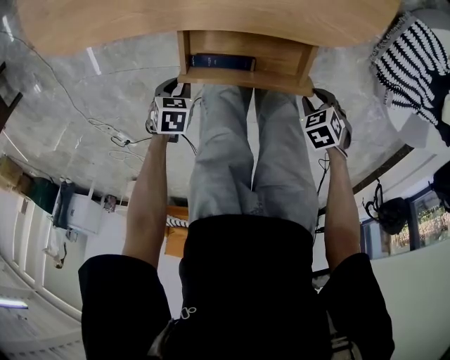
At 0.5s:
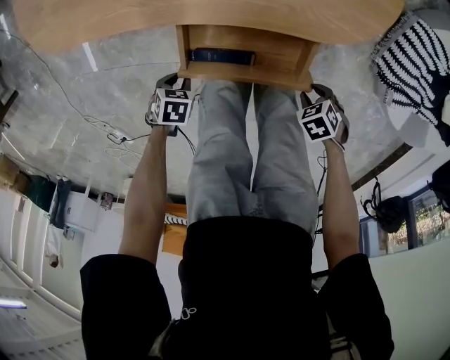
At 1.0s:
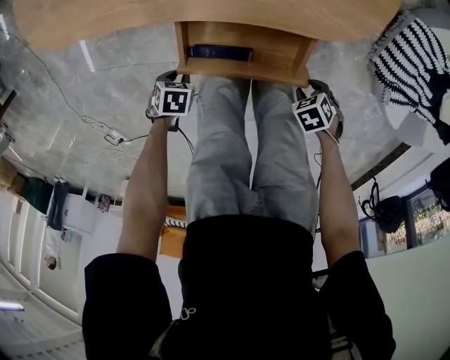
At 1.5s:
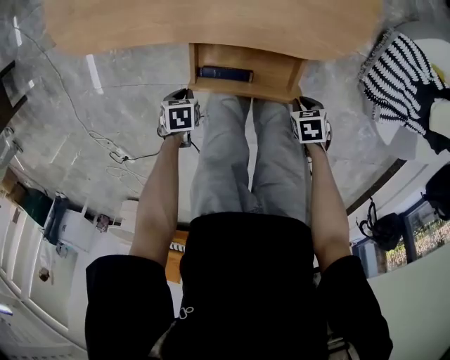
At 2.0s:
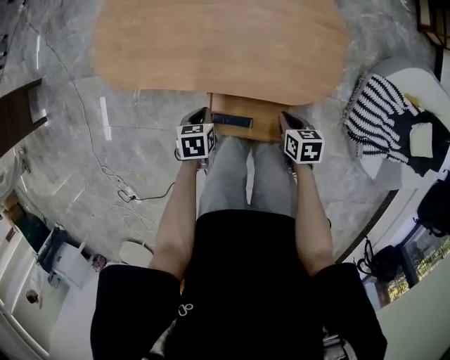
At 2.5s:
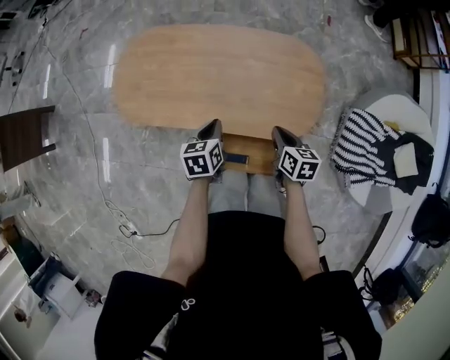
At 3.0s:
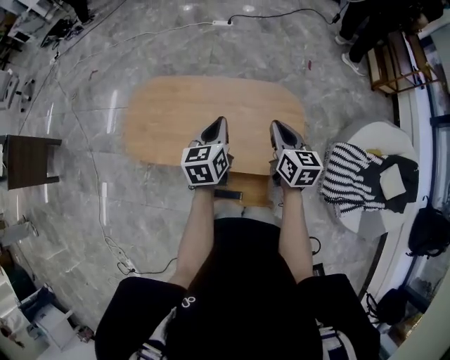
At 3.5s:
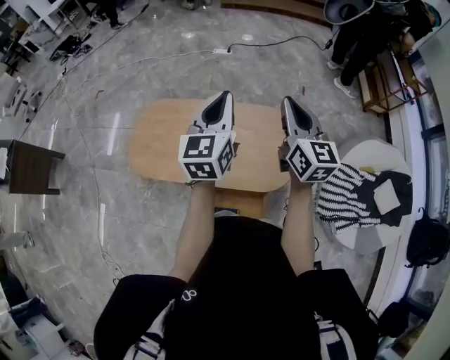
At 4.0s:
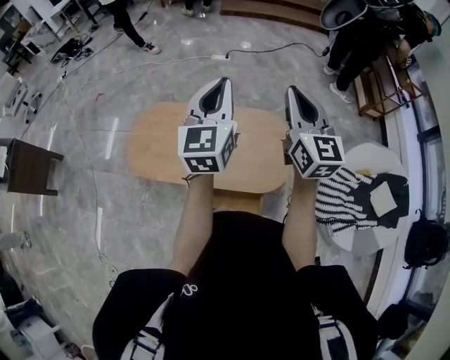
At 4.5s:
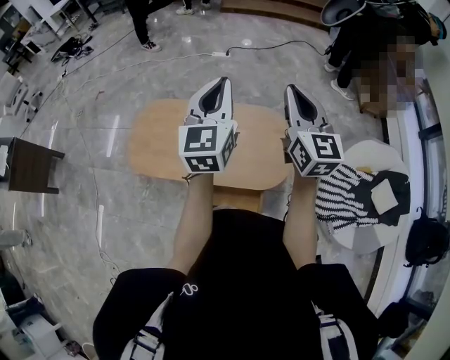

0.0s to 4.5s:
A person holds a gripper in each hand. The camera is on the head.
0.0s to 2.0s: The left gripper travels upward by about 20 cm, and changes its angle by about 30 degrees, while the right gripper moves some 25 cm, swivels about 50 degrees, and closes its fingers.
2.0s to 4.5s: Both grippers travel together upward, some 60 cm. The right gripper points its fingers some 60 degrees further upward; the left gripper tilts its fingers roughly 70 degrees upward.

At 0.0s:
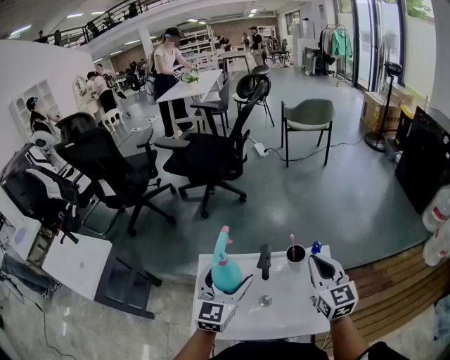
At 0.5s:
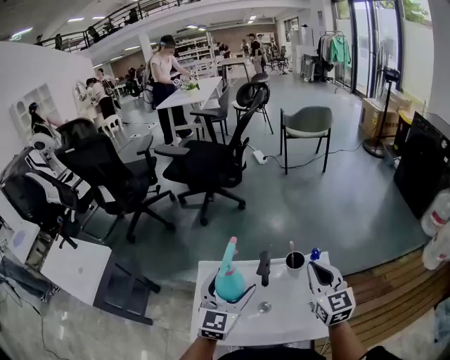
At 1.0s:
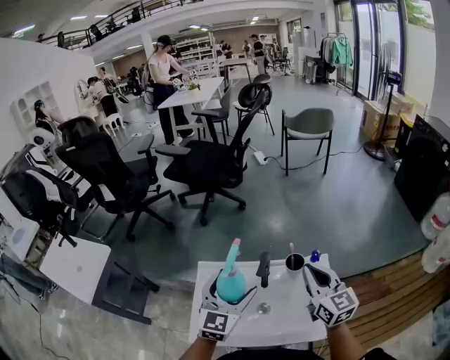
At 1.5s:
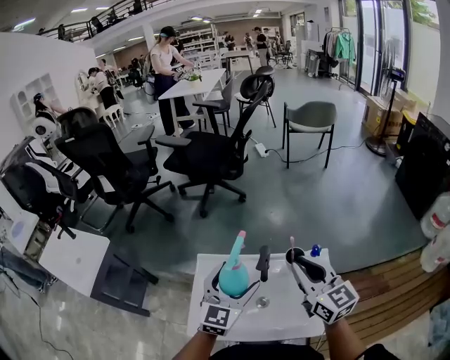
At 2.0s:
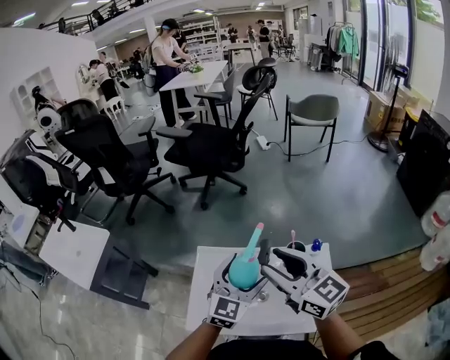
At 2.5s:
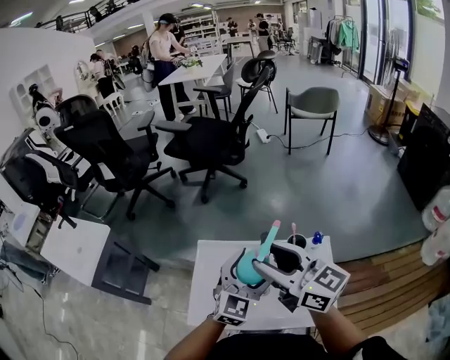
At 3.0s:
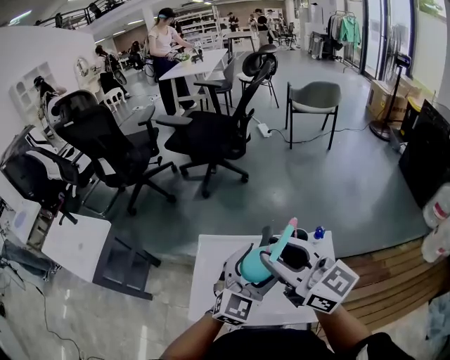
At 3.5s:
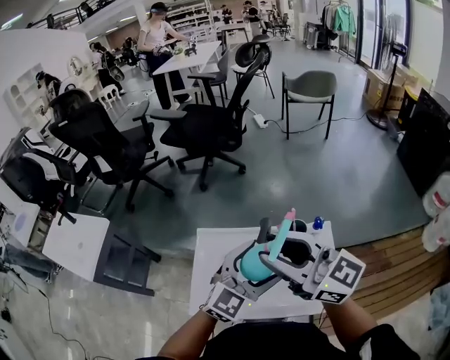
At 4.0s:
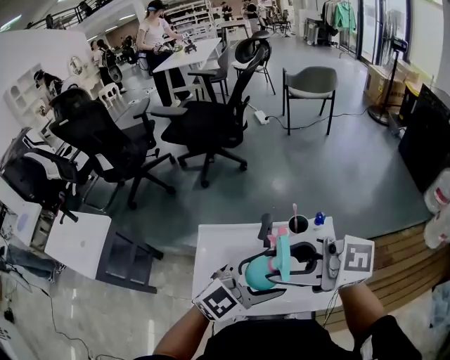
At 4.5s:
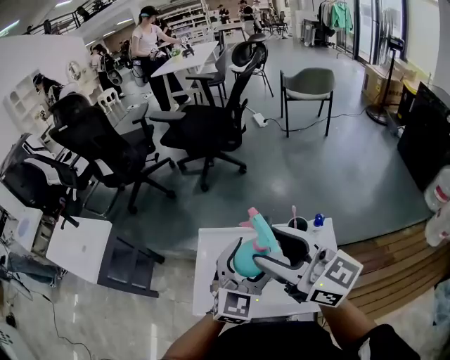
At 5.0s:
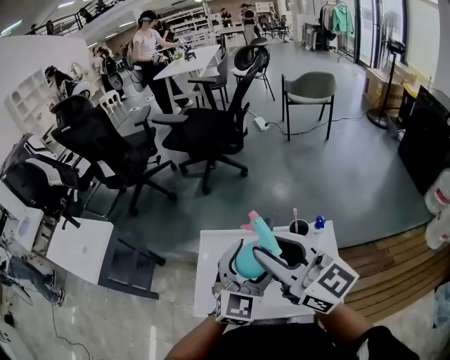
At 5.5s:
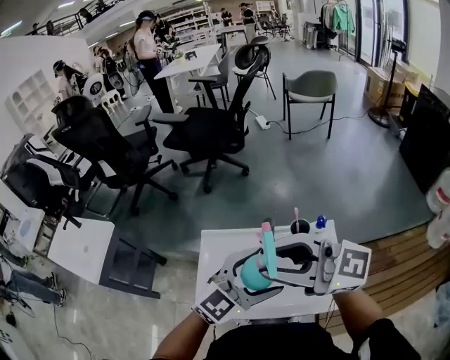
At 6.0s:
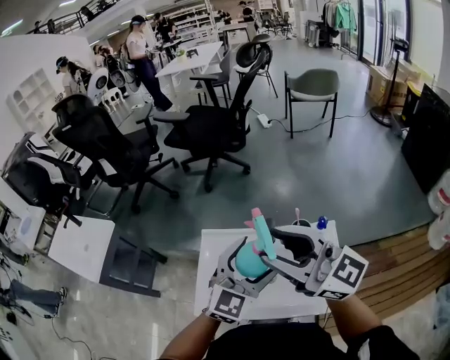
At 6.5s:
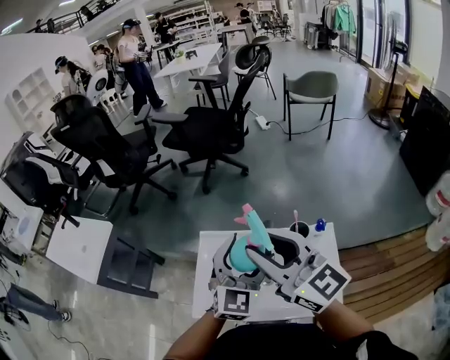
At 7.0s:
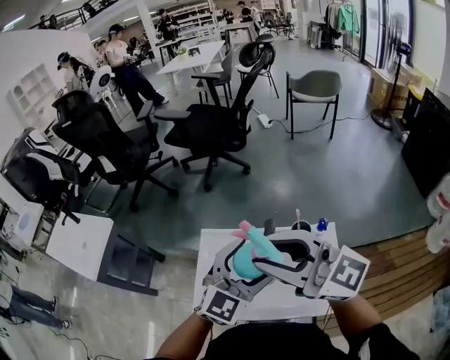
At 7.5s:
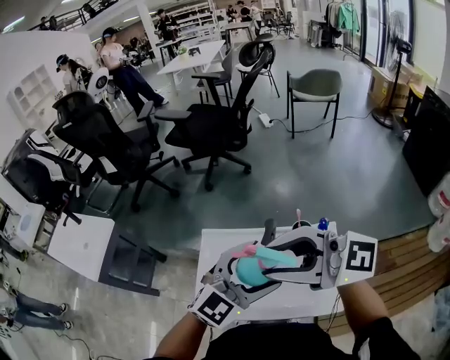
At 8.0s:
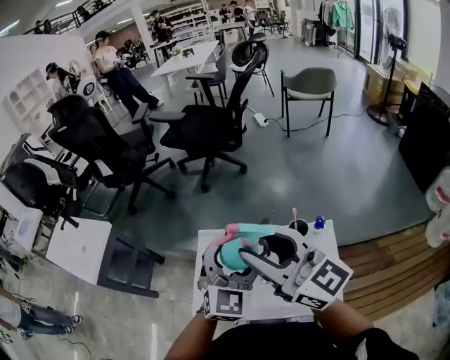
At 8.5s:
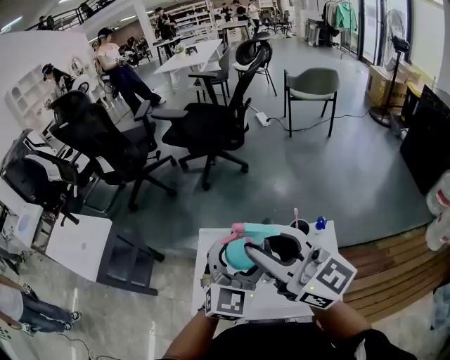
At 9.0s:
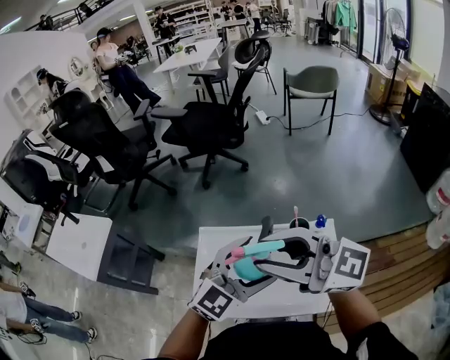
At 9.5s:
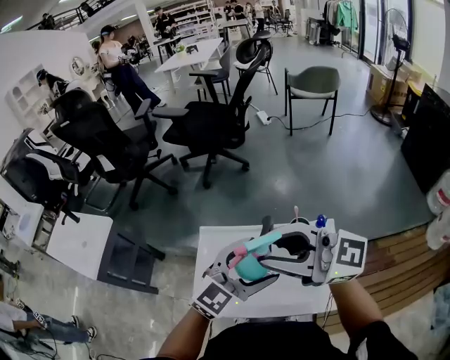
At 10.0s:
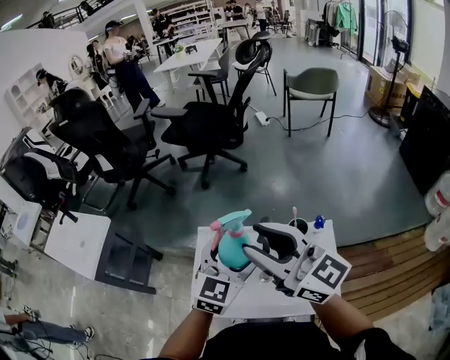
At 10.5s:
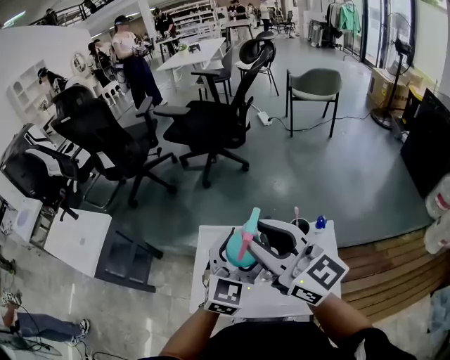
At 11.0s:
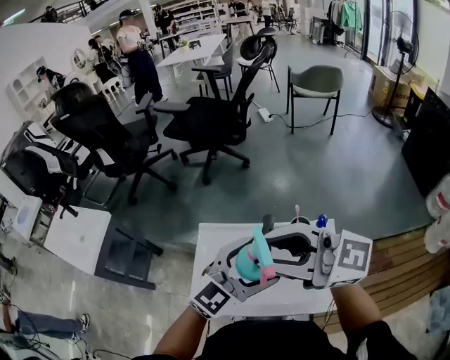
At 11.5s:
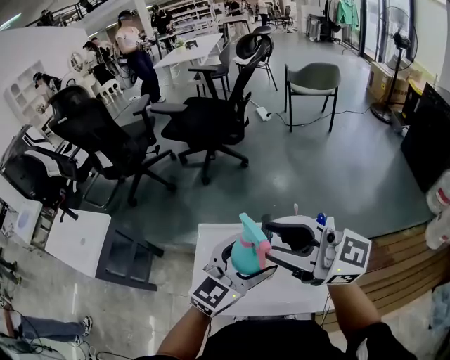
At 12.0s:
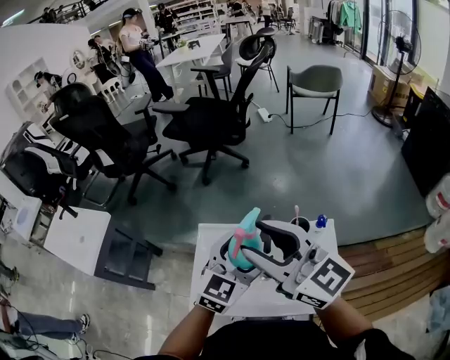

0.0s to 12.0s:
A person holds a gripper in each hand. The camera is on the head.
0.0s to 2.0s: The right gripper shifts approximately 15 cm to the left and upward, turns by about 30 degrees, and opens its fingers, while the left gripper travels to the right by some 5 cm.
2.0s to 4.0s: The right gripper shifts by some 10 cm, and rotates approximately 40 degrees. Meanwhile the left gripper shifts by about 15 cm, and changes its angle by some 40 degrees.
4.0s to 6.0s: The right gripper ends up approximately 5 cm from where it was, and swivels approximately 20 degrees. The left gripper changes place by approximately 10 cm, and rotates roughly 30 degrees.

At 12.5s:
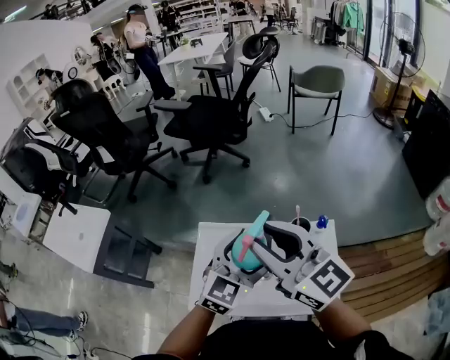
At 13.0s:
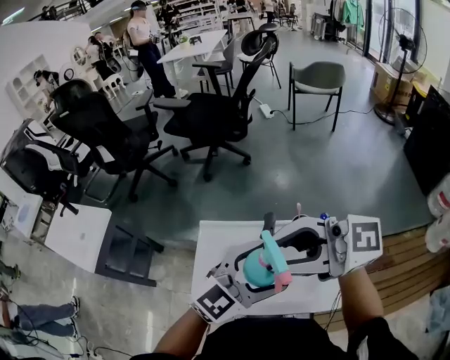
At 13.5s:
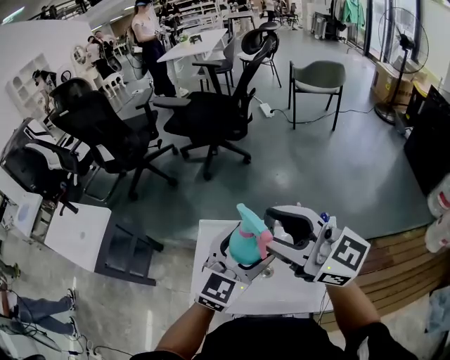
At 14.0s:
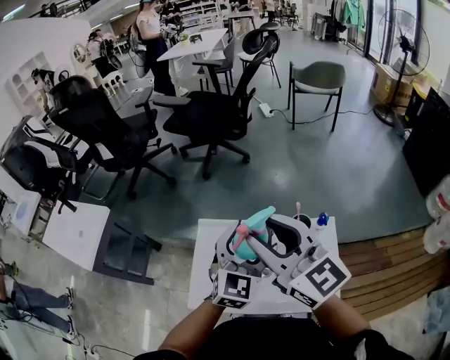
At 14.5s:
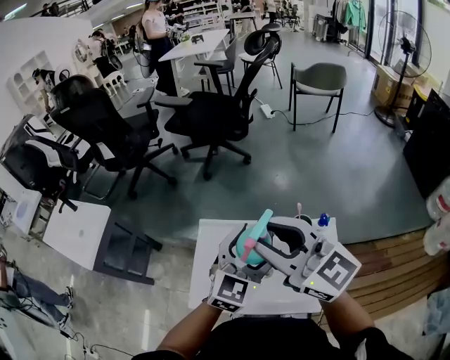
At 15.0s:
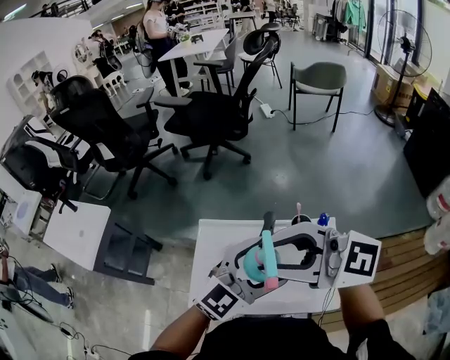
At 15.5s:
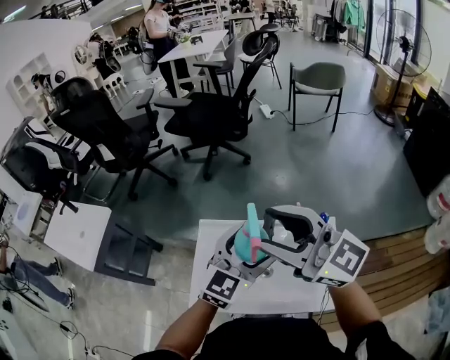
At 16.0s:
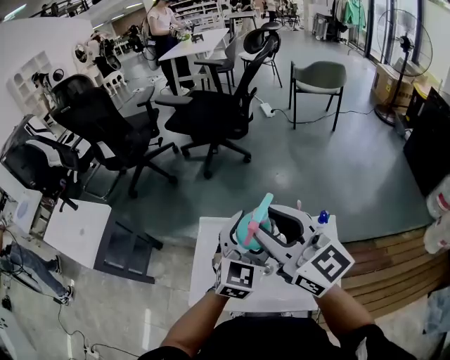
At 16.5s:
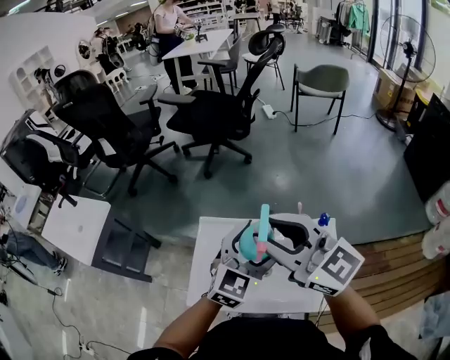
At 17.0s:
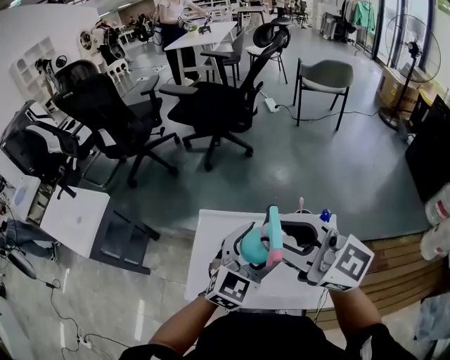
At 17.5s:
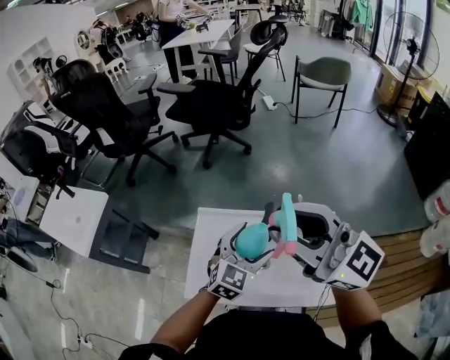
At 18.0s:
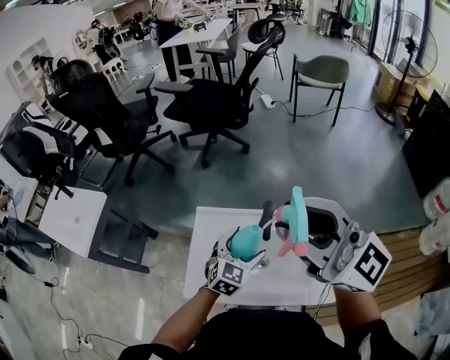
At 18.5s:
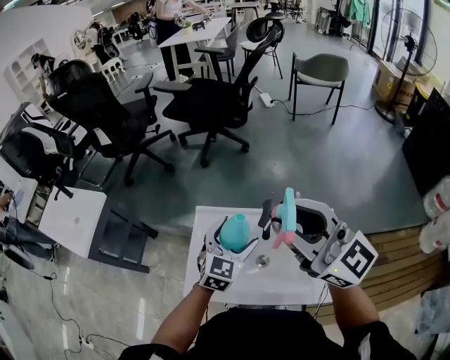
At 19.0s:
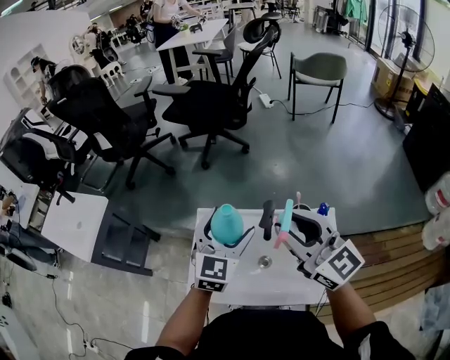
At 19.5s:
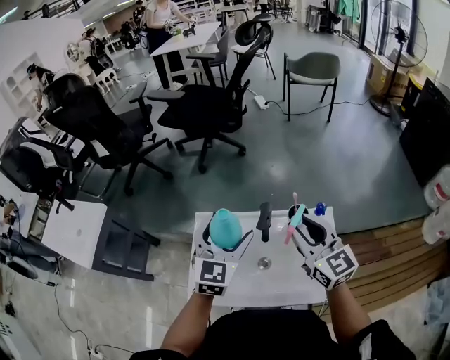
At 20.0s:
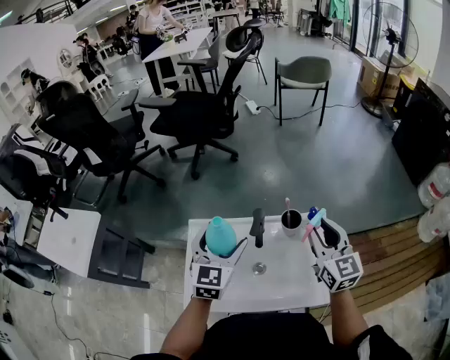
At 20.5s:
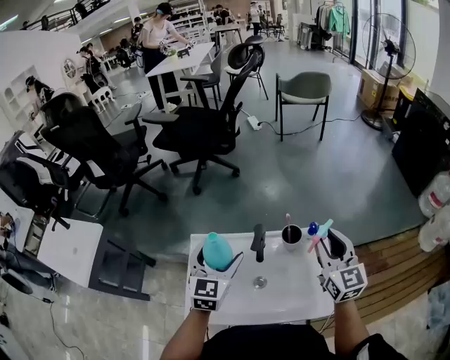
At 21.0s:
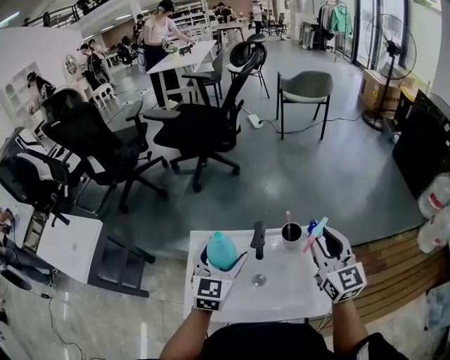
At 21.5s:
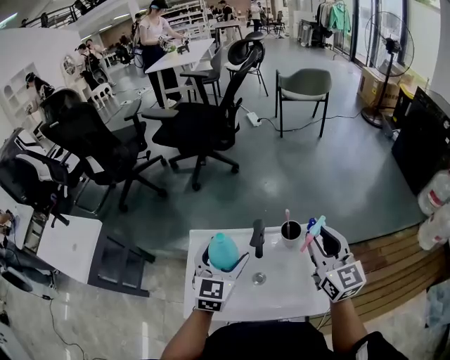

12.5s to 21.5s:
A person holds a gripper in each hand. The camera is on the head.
17.0s to 19.5s: The right gripper shifts roughly 20 cm downward and to the right, and swivels roughly 40 degrees; the left gripper moves forward and to the left, some 10 cm, and reaches roughly 10 cm downward, then returns.
19.5s to 21.5s: The right gripper travels to the right by roughly 5 cm.

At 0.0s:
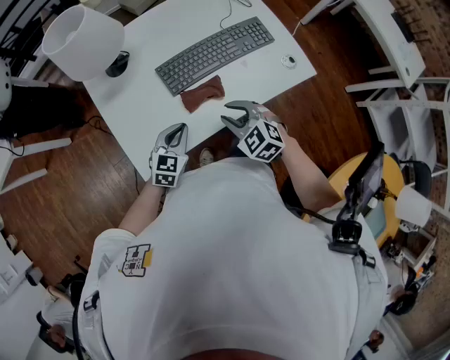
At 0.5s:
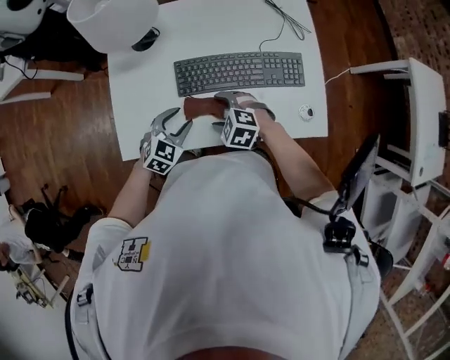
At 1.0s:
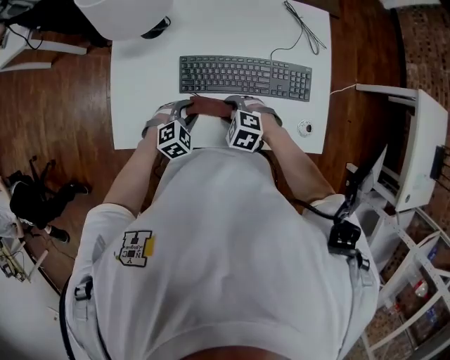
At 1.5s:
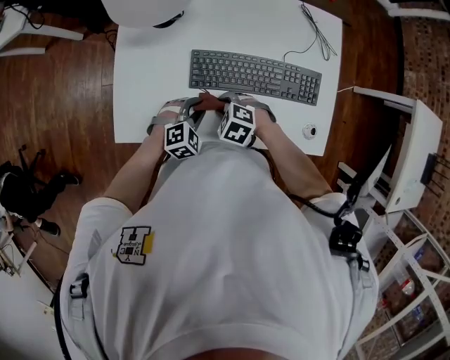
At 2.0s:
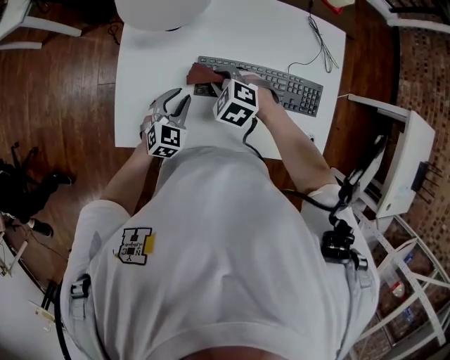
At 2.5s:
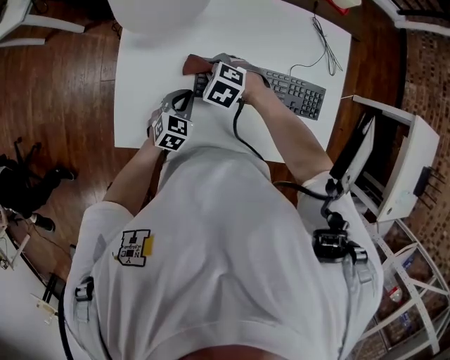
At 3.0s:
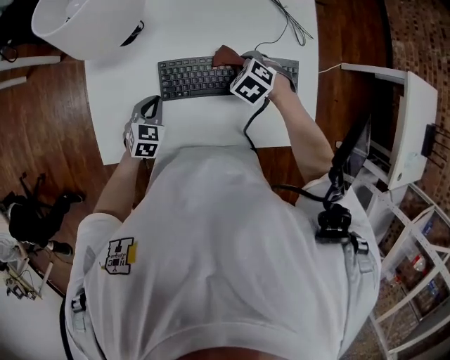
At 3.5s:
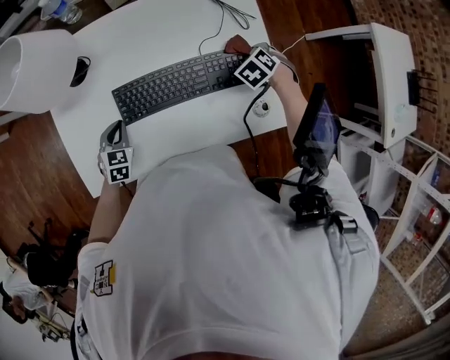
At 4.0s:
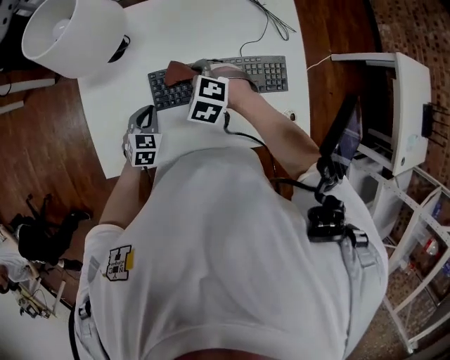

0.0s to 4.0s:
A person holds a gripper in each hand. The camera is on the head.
0.0s to 2.0s: The left gripper moves approximately 15 cm, changes its angle by approximately 20 degrees, and opens.
2.0s to 4.0s: The left gripper closes its fingers.
